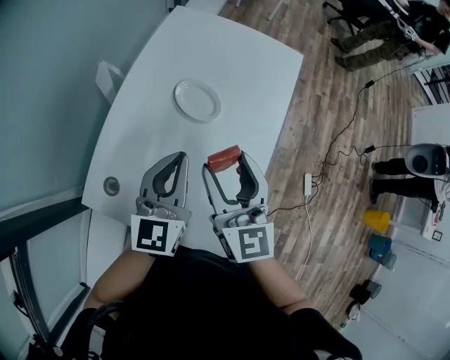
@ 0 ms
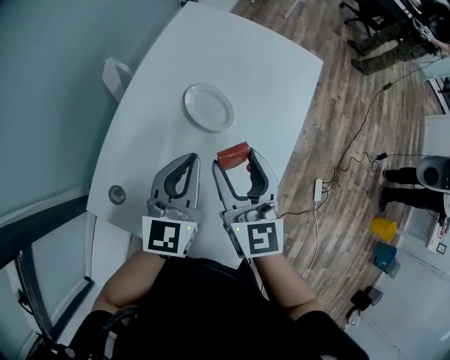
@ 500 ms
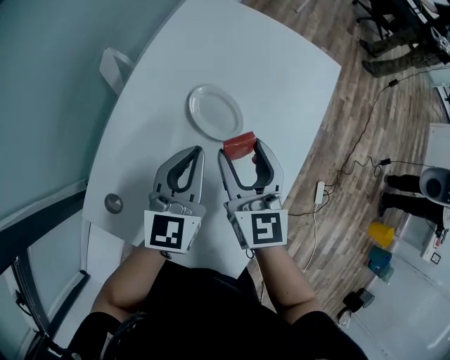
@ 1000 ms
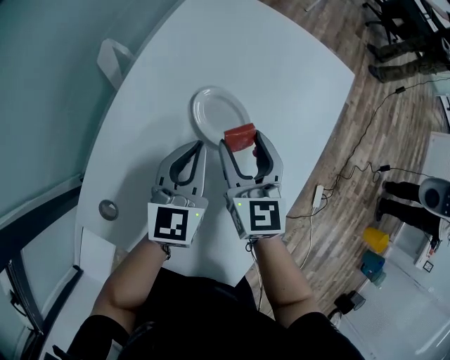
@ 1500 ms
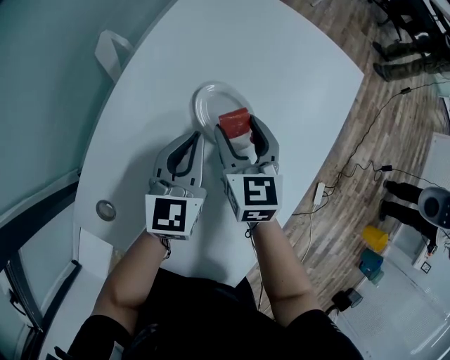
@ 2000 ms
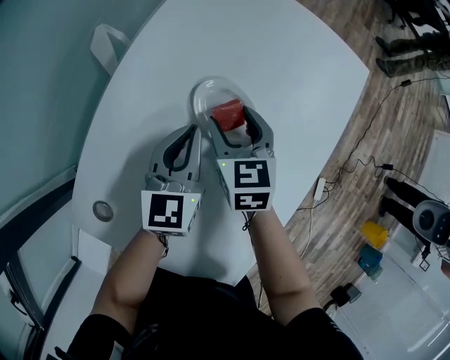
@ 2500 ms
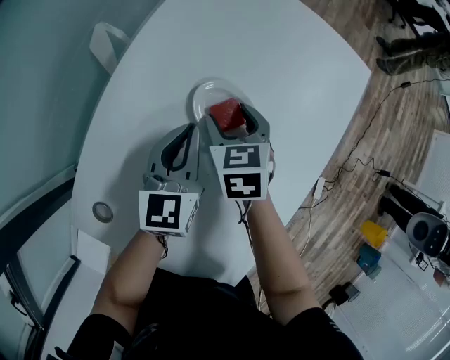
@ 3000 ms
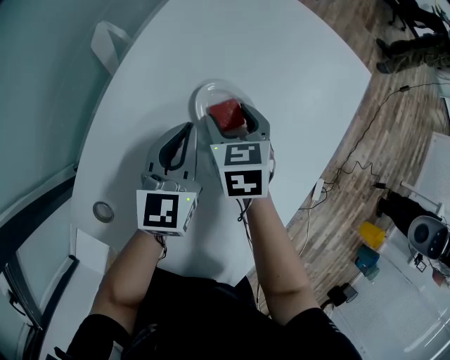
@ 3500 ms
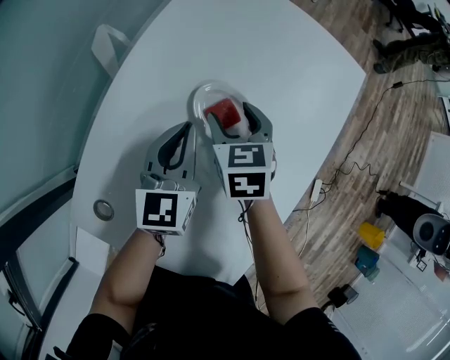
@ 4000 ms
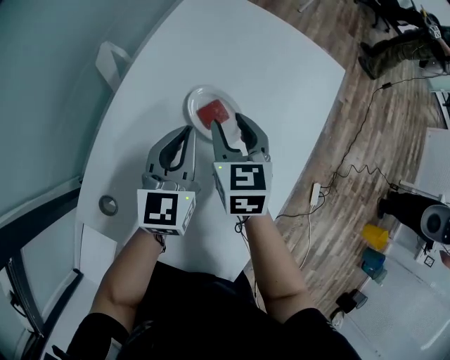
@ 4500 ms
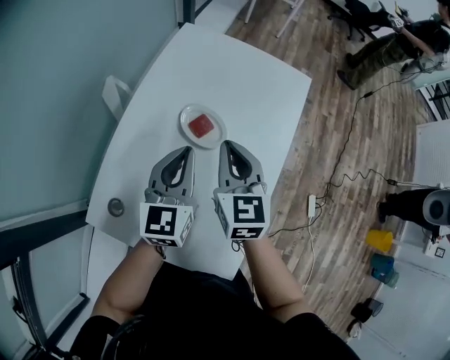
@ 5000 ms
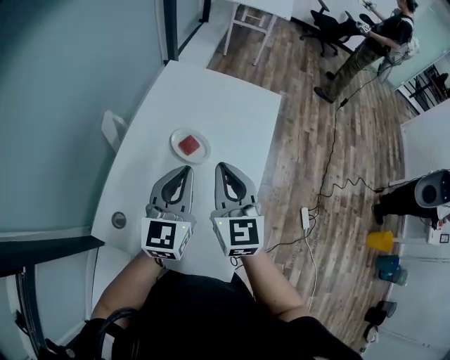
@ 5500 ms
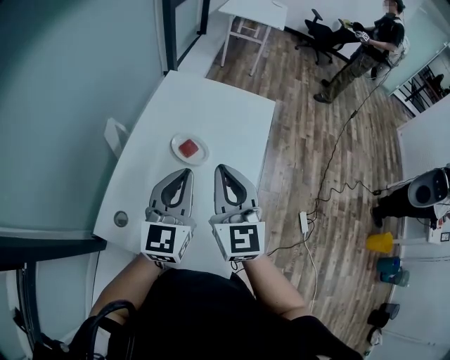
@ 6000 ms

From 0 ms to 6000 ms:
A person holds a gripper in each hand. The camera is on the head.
From 0 ms to 2000 ms: Both grippers move downward and forward, approximately 25 cm. The right gripper changes its angle by about 30 degrees.
From 4000 ms to 6000 ms: The two grippers go about 30 cm upward and backward. The right gripper tips its fingers upward by approximately 40 degrees, and closes up, while the left gripper changes its angle by about 20 degrees.

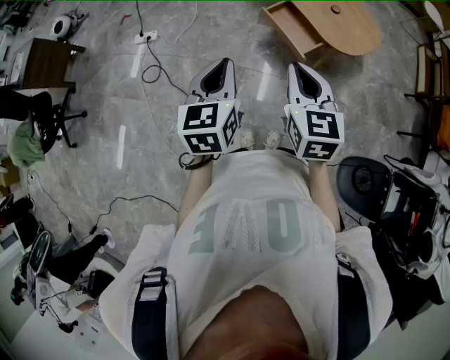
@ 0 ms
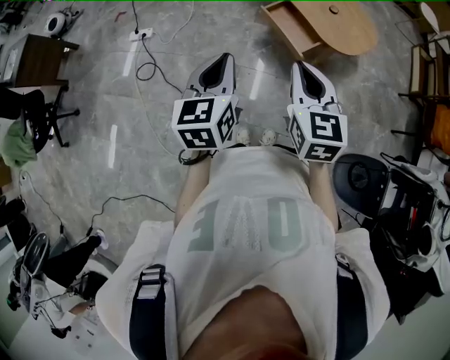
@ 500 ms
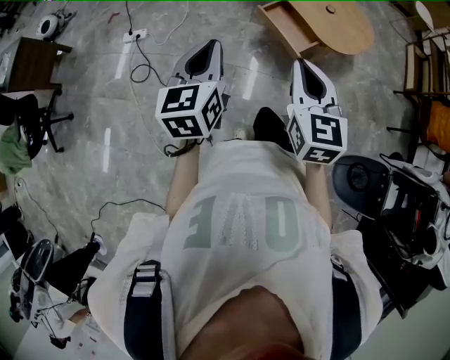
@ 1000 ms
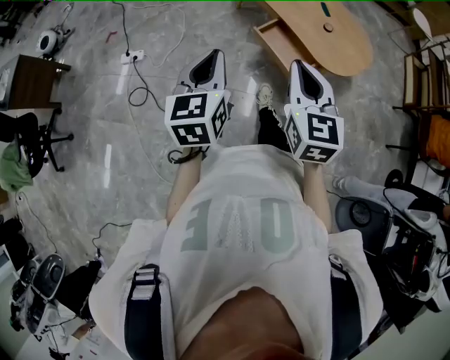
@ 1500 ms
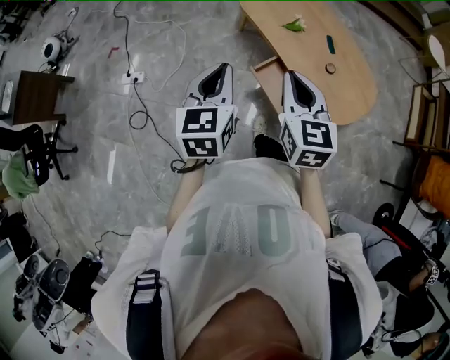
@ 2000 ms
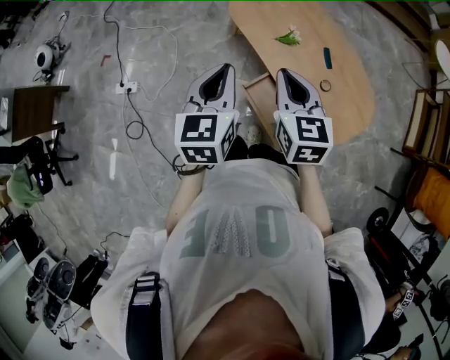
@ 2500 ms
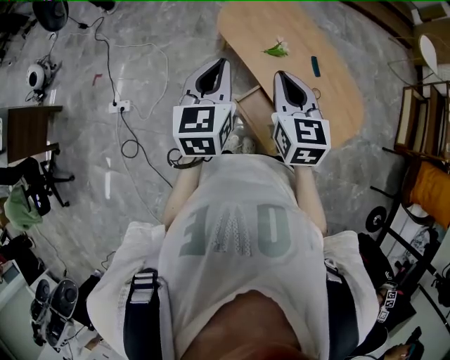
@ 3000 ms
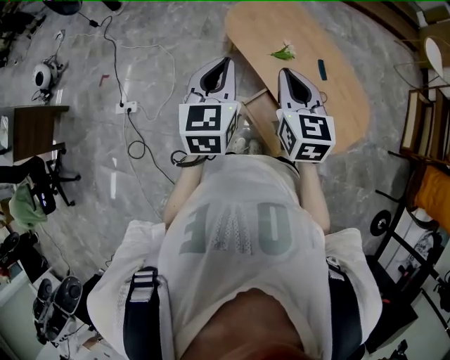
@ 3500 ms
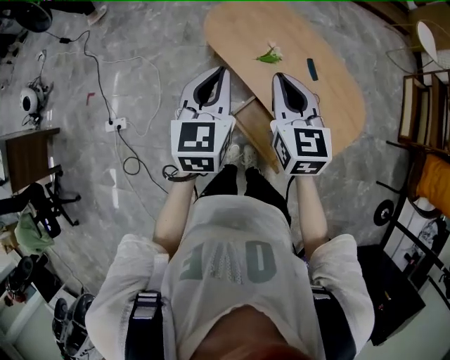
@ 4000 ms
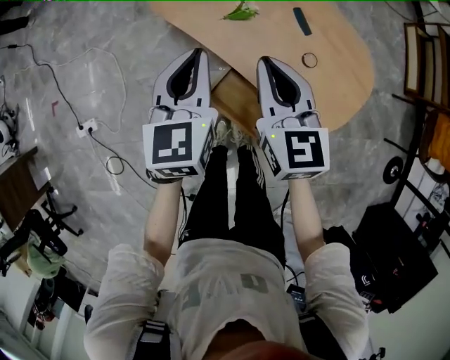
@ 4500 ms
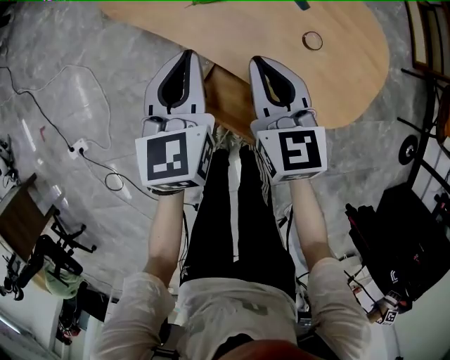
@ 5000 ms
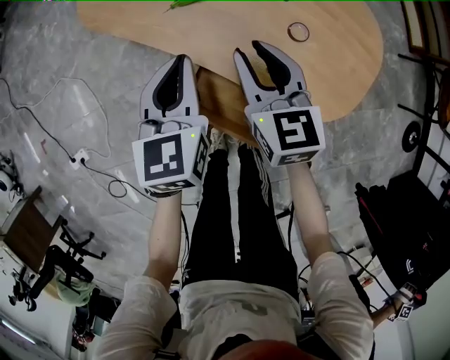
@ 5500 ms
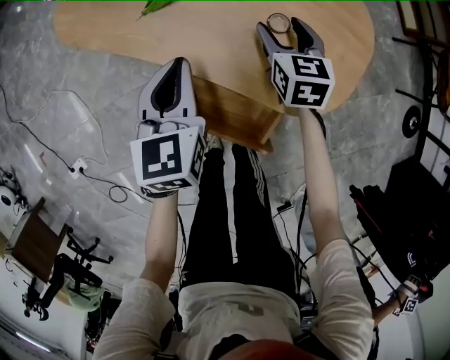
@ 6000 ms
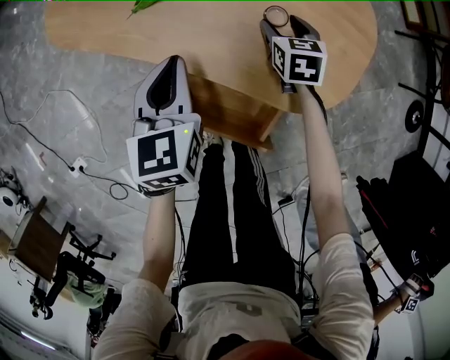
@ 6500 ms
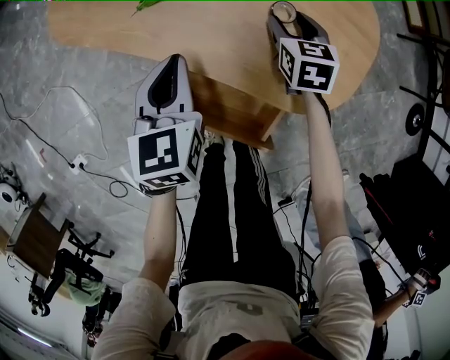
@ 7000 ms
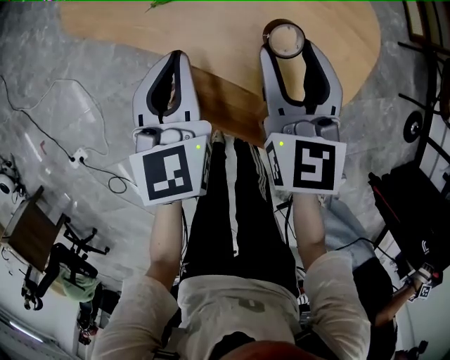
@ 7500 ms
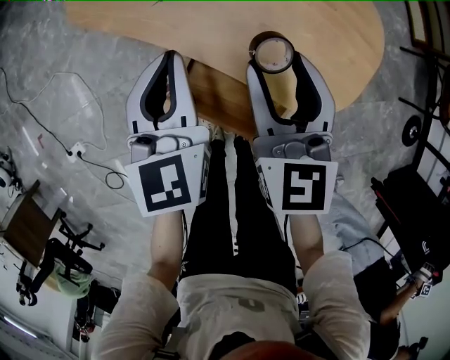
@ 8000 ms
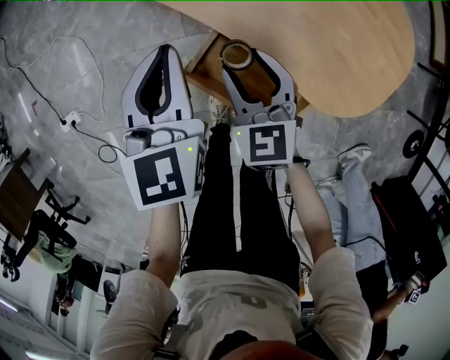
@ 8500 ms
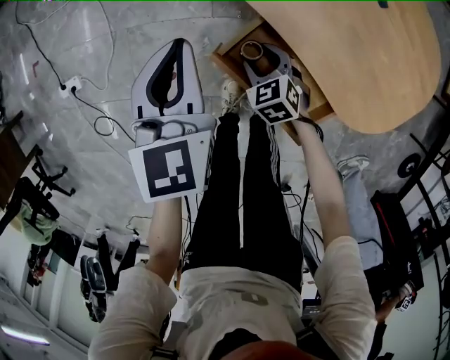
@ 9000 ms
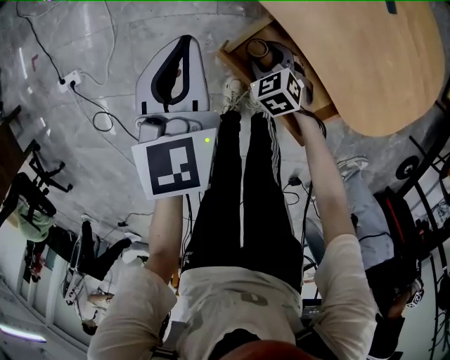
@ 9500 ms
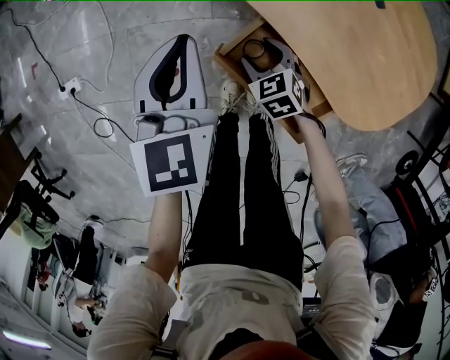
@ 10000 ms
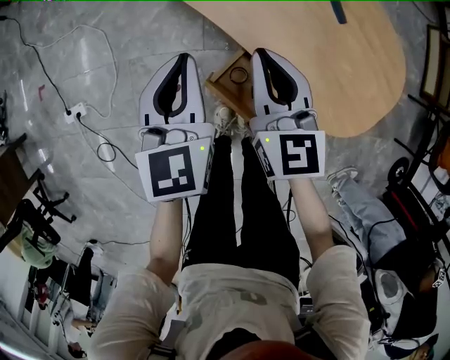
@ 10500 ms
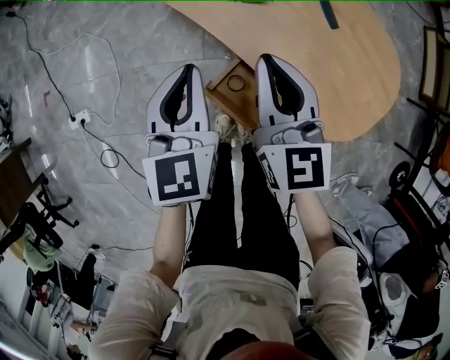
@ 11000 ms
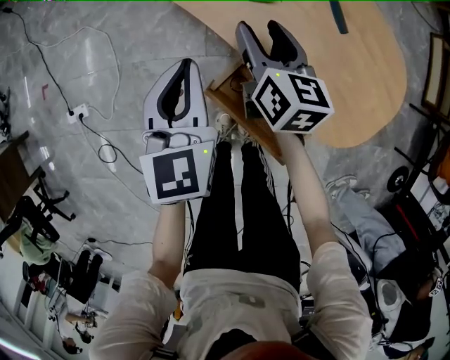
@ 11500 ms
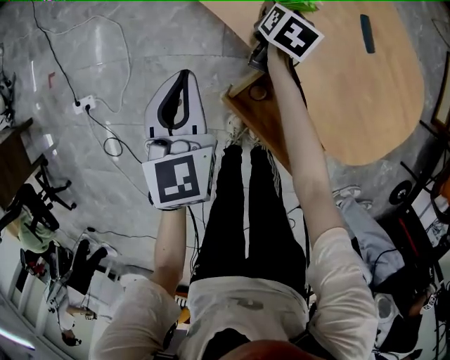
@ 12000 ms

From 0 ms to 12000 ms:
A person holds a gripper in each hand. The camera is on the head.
From 0 ms to 2000 ms: Both grippers travel together forward, approximately 35 cm.
From 2000 ms to 4000 ms: The grippers both shift forward by approximately 25 cm.
From 4000 ms to 6000 ms: The two grippers go some 40 cm downward and to the right. The right gripper rotates about 30 degrees, and opens its fingers.
From 6000 ms to 8000 ms: The left gripper travels upward by some 5 cm; the right gripper travels upward, backward and to the left by some 20 cm.
From 8000 ms to 10000 ms: The left gripper changes place by roughly 15 cm. Meanwhile the right gripper heads downward, covering about 30 cm, and angles its fingers downward, by some 30 degrees.
From 10000 ms to 12000 ms: The right gripper moves forward, roughly 25 cm, goes upward and returns, some 30 cm each way, twists roughly 60 degrees clockwise, seen from behind, and closes, then reopens. The left gripper moves some 10 cm upward and comes back.

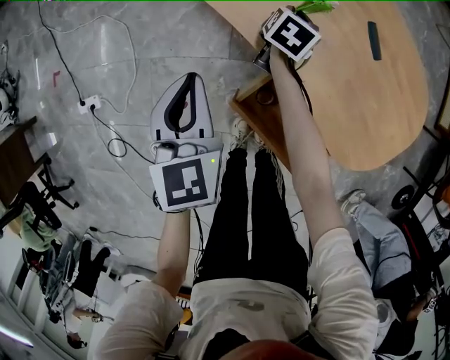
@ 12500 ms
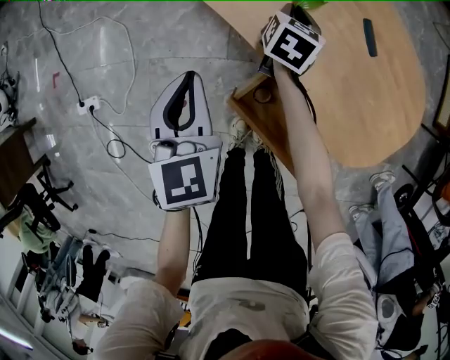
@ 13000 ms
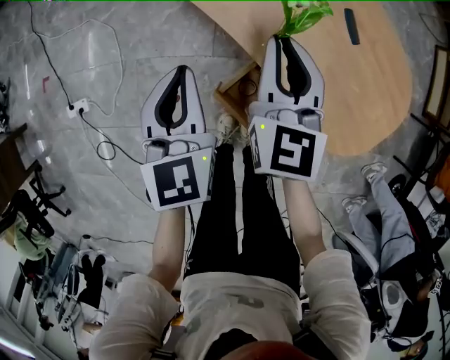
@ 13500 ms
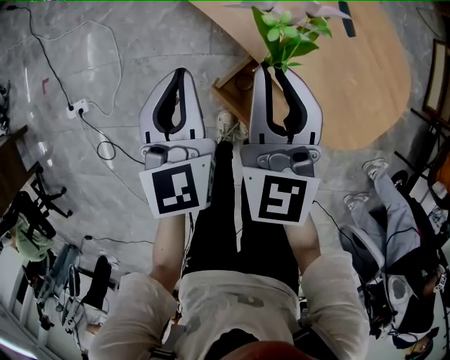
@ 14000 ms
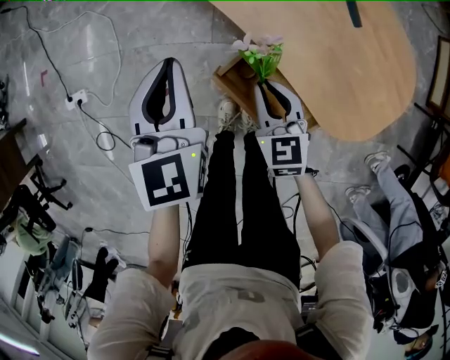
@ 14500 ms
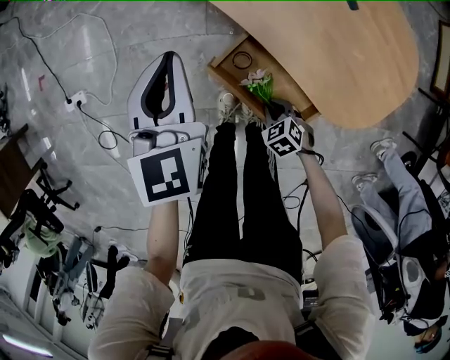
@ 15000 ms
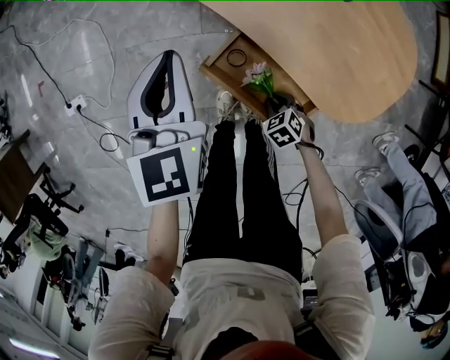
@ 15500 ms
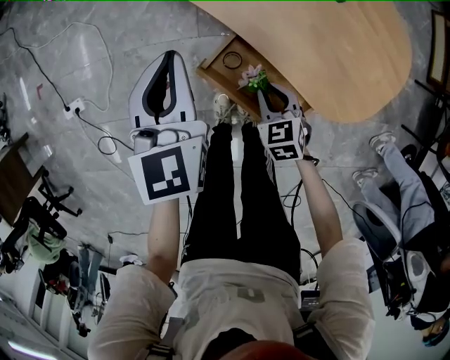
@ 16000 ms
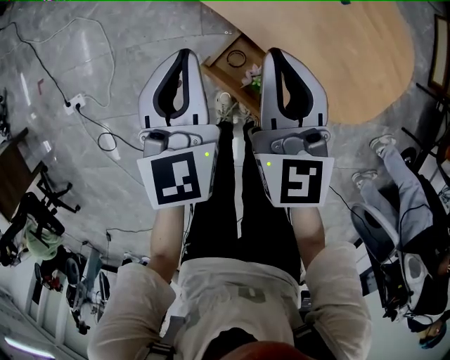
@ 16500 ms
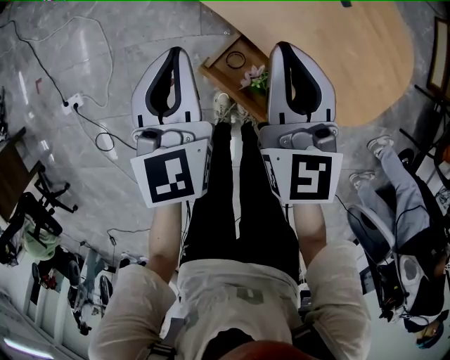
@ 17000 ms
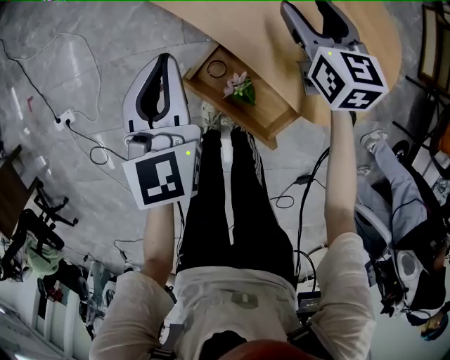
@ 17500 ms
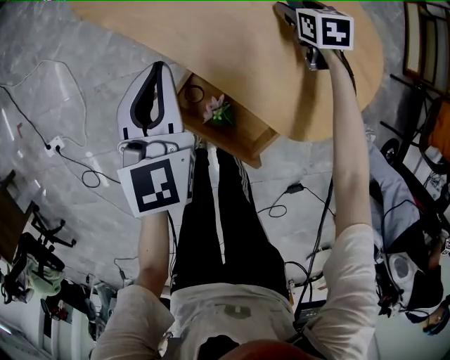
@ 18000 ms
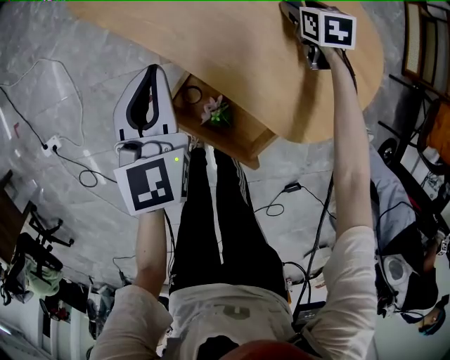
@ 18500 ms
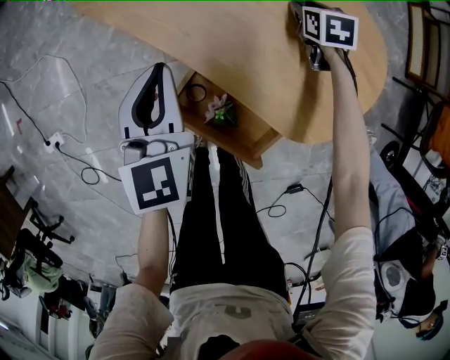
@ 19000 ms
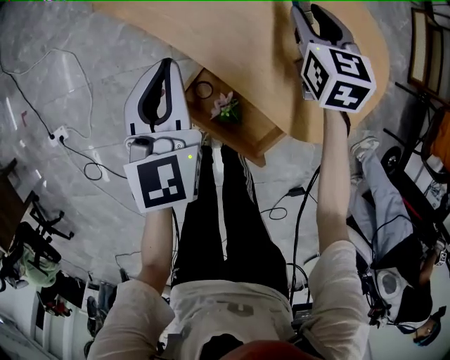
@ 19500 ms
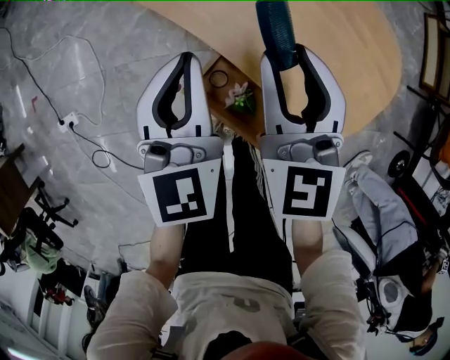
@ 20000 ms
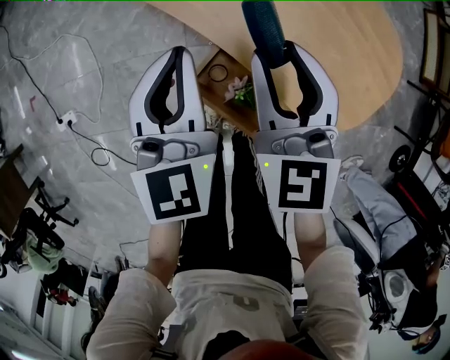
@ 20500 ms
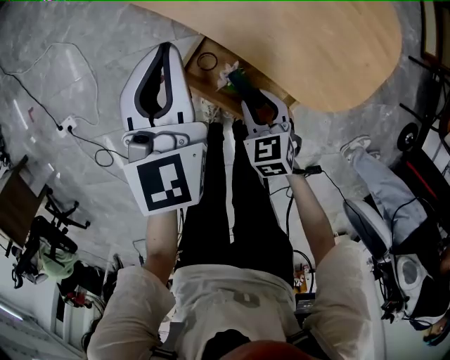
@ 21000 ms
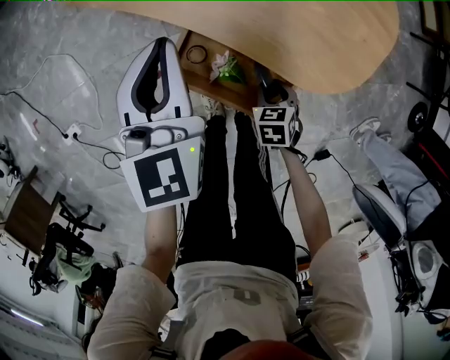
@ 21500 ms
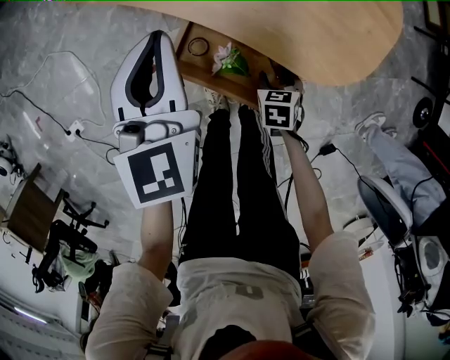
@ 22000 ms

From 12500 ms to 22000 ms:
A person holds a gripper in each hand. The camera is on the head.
From 12500 ms to 14500 ms: The right gripper moves backward, roughly 25 cm, and rotates roughly 50 degrees. Meanwhile the left gripper moves approximately 5 cm.
From 14500 ms to 16500 ms: The right gripper heads upward, covering about 15 cm, and turns by some 30 degrees. The left gripper changes place by roughly 5 cm.
From 16500 ms to 18000 ms: The left gripper heads forward and to the right, covering some 10 cm; the right gripper shifts about 40 cm downward, to the right and forward, angles its fingers downward, by roughly 40 degrees, and opens its fingers.
From 18000 ms to 20000 ms: The left gripper travels upward by some 5 cm; the right gripper shifts approximately 35 cm upward, to the left and backward, points its fingers about 40 degrees further upward, and closes.
From 20000 ms to 22000 ms: The right gripper shifts some 40 cm downward and backward, and tilts its fingers roughly 50 degrees downward. Meanwhile the left gripper shifts by approximately 5 cm.
